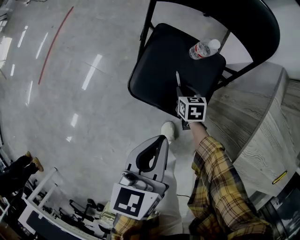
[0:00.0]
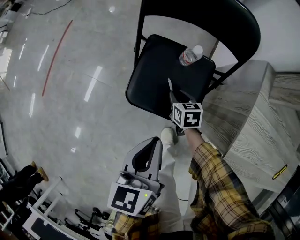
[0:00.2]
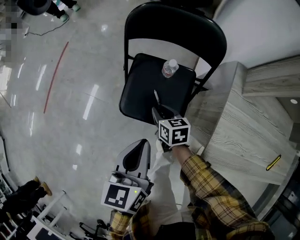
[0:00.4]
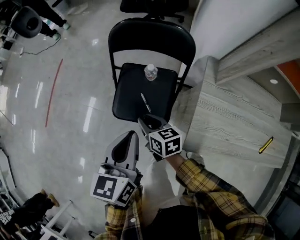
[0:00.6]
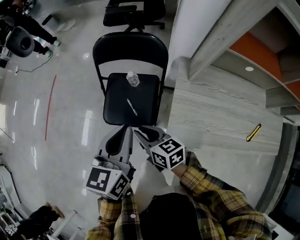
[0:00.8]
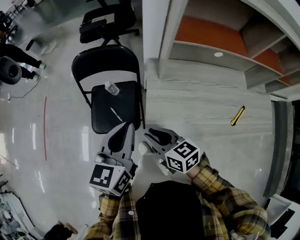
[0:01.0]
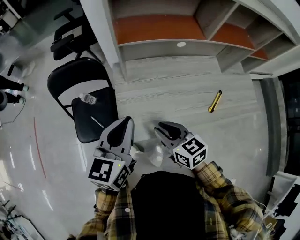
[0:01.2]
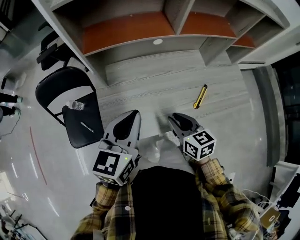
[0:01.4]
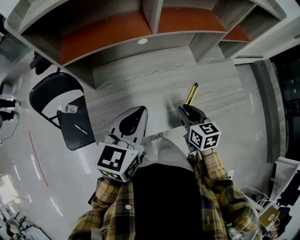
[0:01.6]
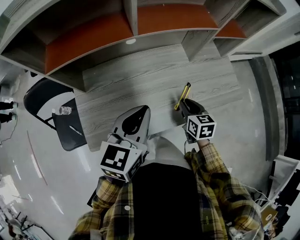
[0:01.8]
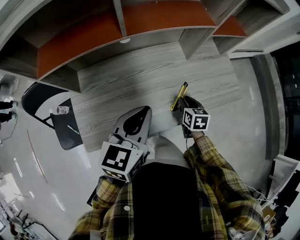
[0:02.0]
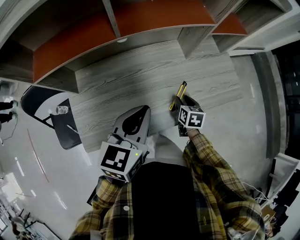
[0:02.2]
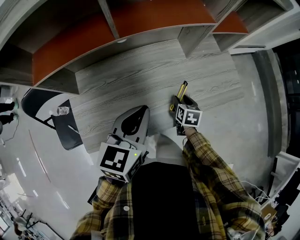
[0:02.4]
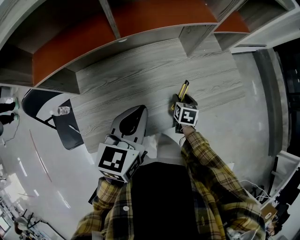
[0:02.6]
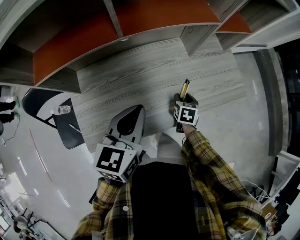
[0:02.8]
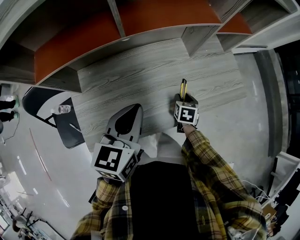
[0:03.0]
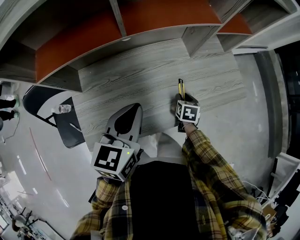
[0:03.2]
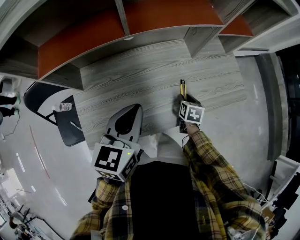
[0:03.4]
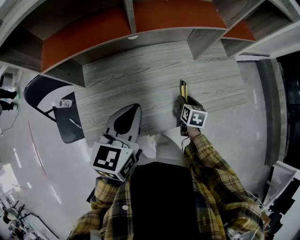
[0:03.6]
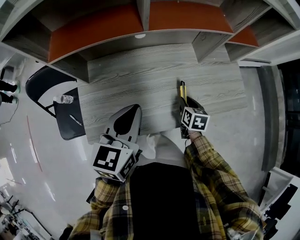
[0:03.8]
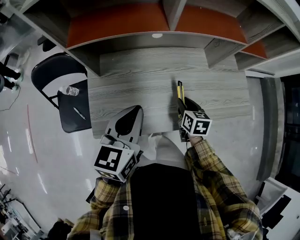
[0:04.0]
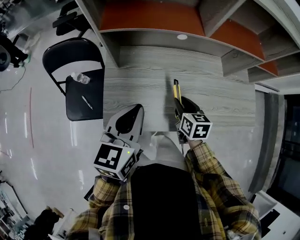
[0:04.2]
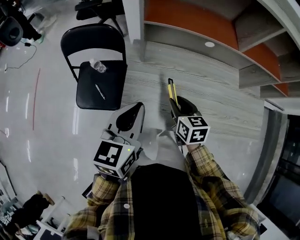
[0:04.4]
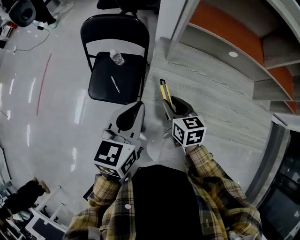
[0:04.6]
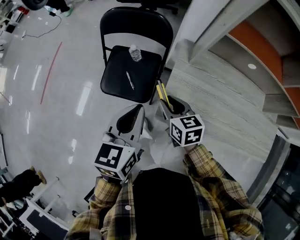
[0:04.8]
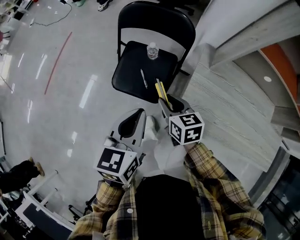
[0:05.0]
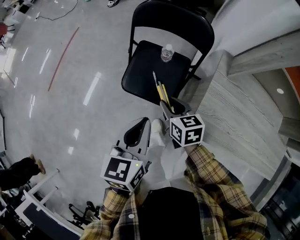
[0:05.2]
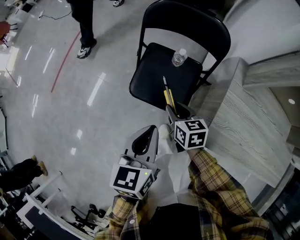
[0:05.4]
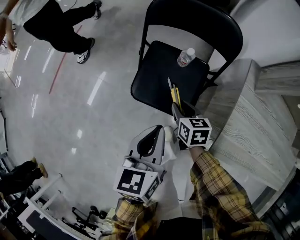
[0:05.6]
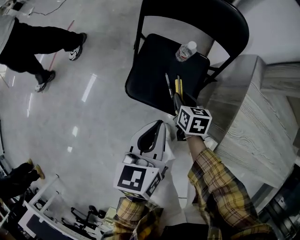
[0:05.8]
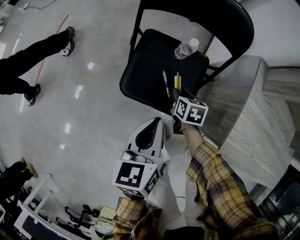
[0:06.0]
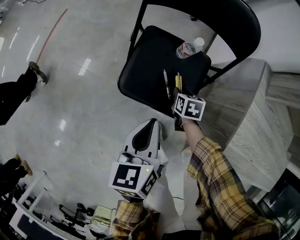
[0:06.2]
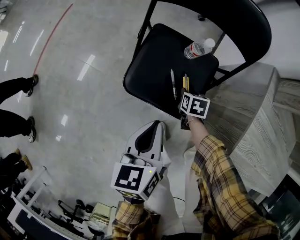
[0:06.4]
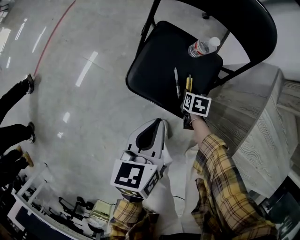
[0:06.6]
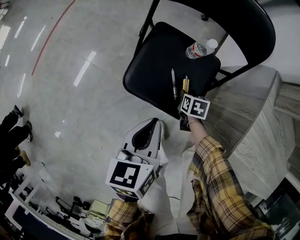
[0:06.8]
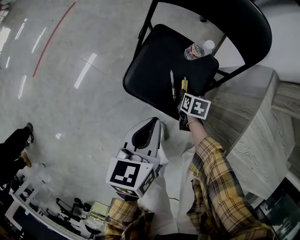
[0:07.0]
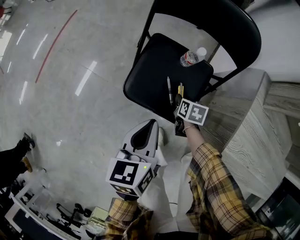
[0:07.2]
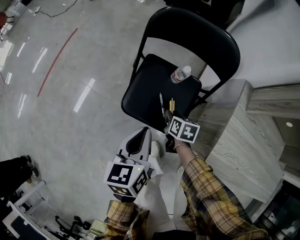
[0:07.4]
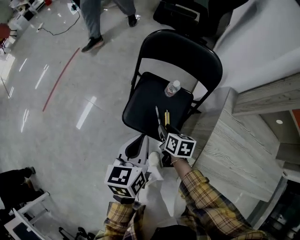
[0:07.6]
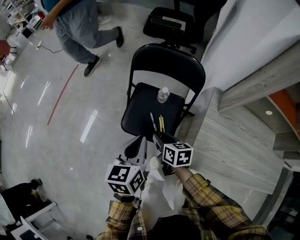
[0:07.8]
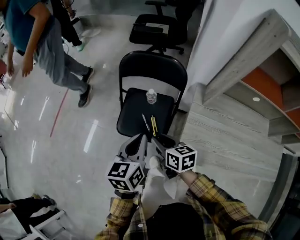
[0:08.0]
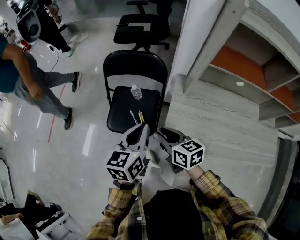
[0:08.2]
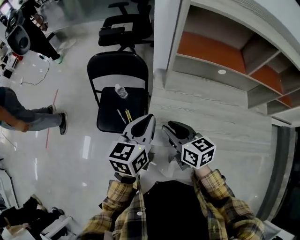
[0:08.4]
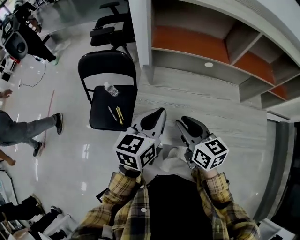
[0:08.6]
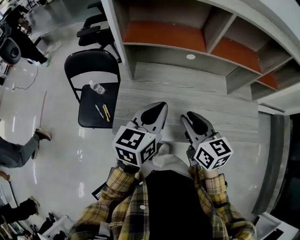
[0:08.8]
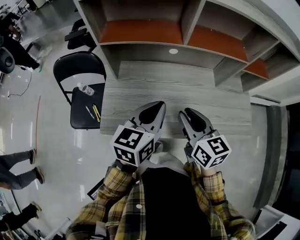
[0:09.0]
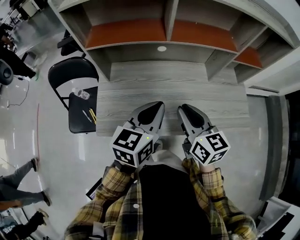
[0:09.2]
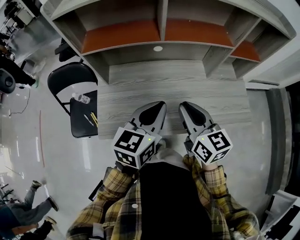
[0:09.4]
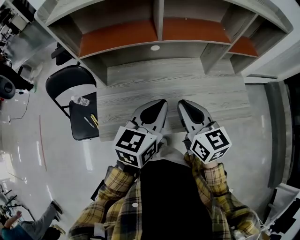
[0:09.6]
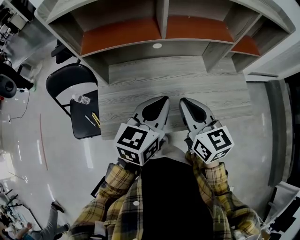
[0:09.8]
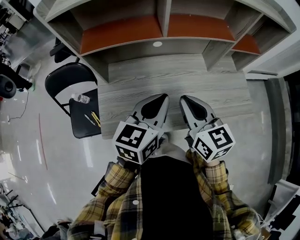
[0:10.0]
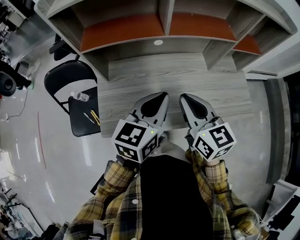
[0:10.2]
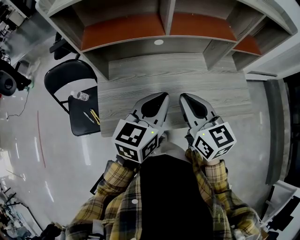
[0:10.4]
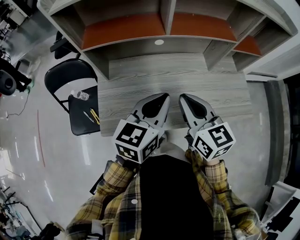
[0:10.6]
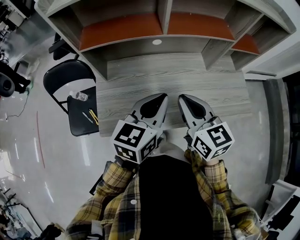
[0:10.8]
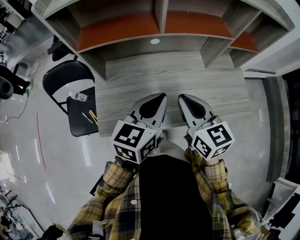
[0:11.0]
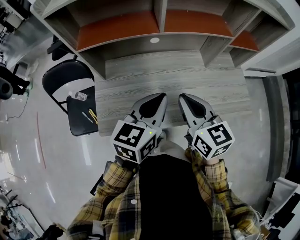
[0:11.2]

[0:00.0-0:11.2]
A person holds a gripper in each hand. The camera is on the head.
0:00.0 to 0:01.6: The two grippers travel together, approximately 60 cm. The left gripper turns by roughly 60 degrees. Meanwhile the right gripper rotates approximately 50 degrees.
0:01.6 to 0:03.2: The right gripper shifts about 20 cm downward, forward and to the right, and turns by approximately 30 degrees, while the left gripper heads forward, covering roughly 5 cm.
0:03.2 to 0:04.8: Both grippers are carried approximately 50 cm. The right gripper rotates roughly 60 degrees. Meanwhile the left gripper changes its angle by roughly 40 degrees.
0:04.8 to 0:06.4: The left gripper heads downward and to the left, covering roughly 35 cm, and rotates roughly 30 degrees. Meanwhile the right gripper is displaced downward by some 40 cm, and changes its angle by approximately 30 degrees.
0:06.4 to 0:08.0: The left gripper is displaced upward by about 25 cm. The right gripper travels upward by approximately 40 cm, and tilts its fingers about 30 degrees upward.
0:08.0 to 0:09.6: Both grippers are carried about 50 cm. The left gripper changes its angle by approximately 40 degrees, while the right gripper rotates roughly 40 degrees, and closes its fingers.
0:09.6 to 0:11.2: The grippers move only a little.

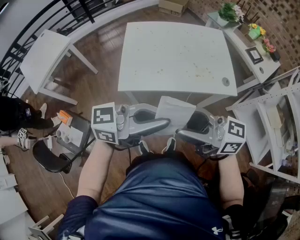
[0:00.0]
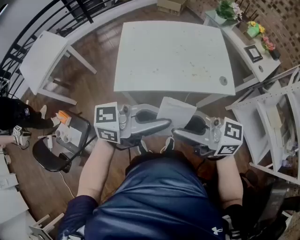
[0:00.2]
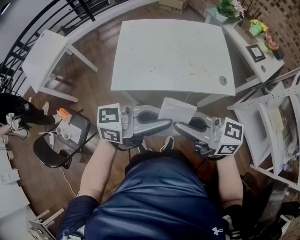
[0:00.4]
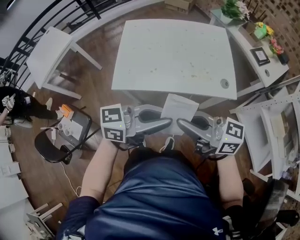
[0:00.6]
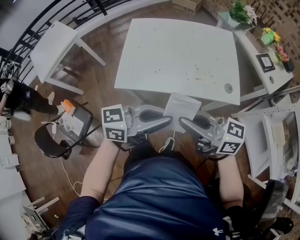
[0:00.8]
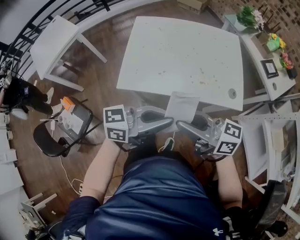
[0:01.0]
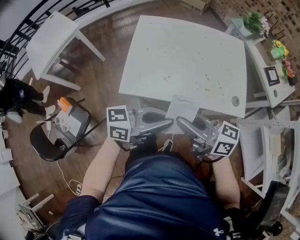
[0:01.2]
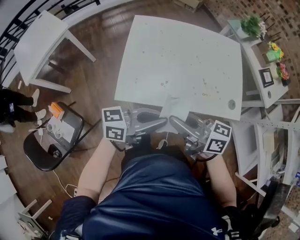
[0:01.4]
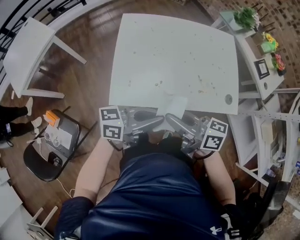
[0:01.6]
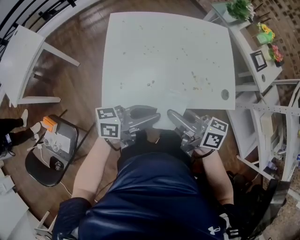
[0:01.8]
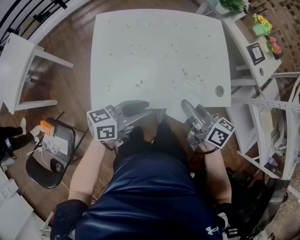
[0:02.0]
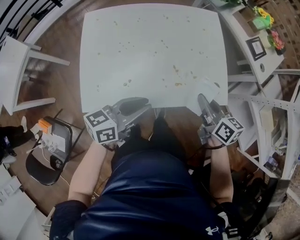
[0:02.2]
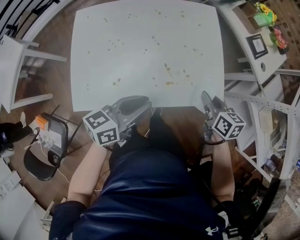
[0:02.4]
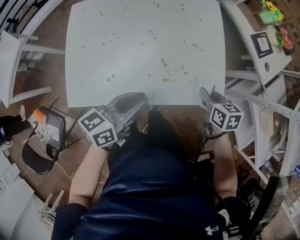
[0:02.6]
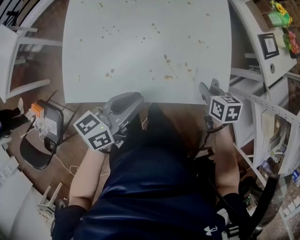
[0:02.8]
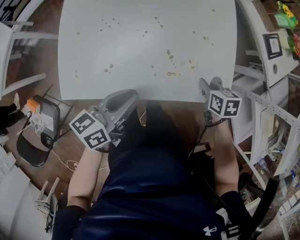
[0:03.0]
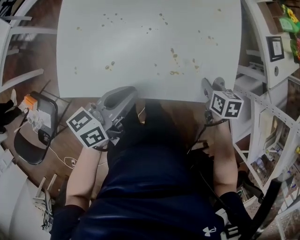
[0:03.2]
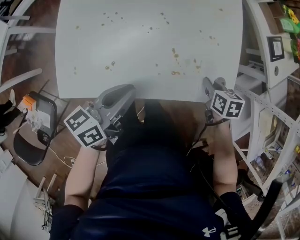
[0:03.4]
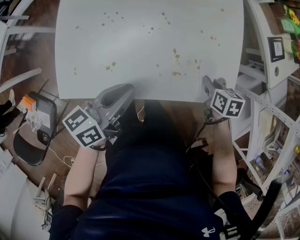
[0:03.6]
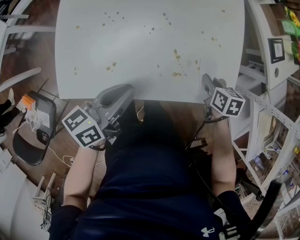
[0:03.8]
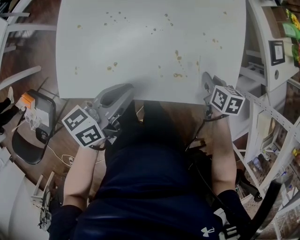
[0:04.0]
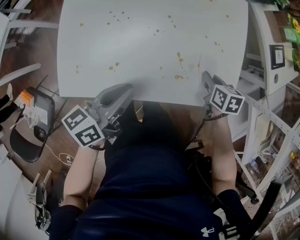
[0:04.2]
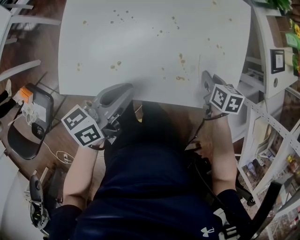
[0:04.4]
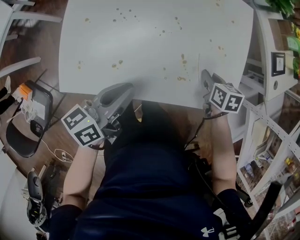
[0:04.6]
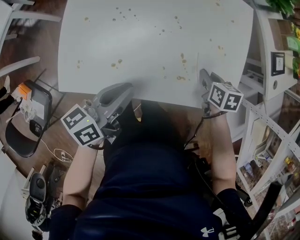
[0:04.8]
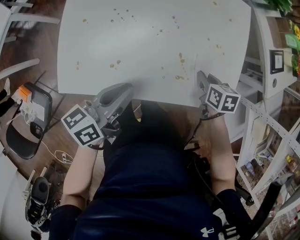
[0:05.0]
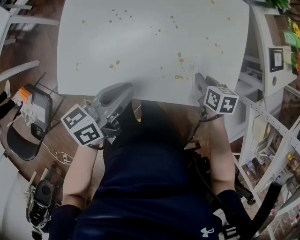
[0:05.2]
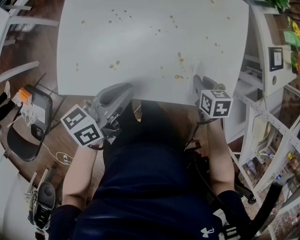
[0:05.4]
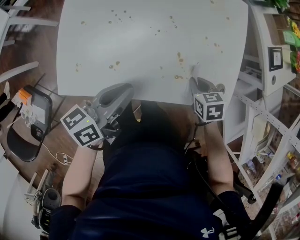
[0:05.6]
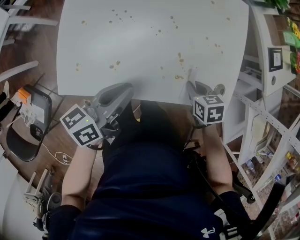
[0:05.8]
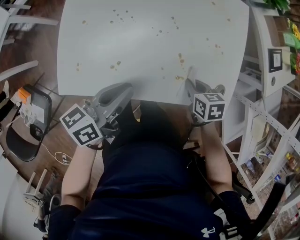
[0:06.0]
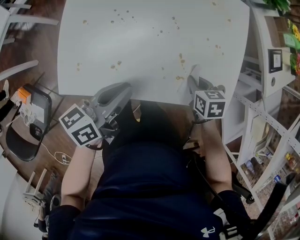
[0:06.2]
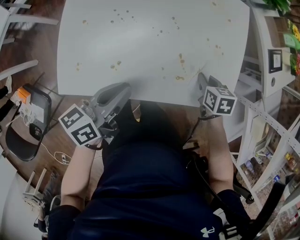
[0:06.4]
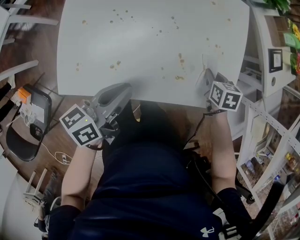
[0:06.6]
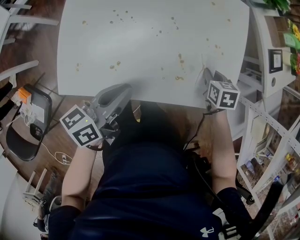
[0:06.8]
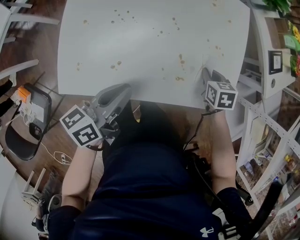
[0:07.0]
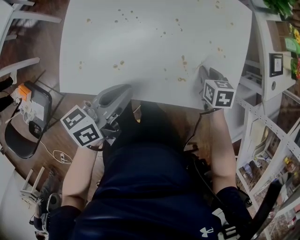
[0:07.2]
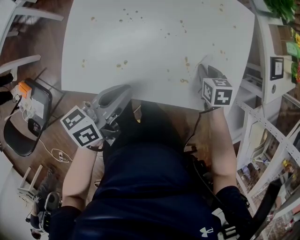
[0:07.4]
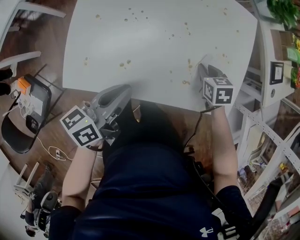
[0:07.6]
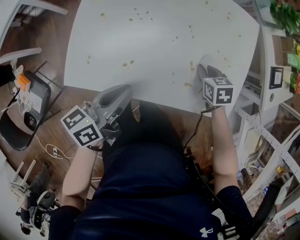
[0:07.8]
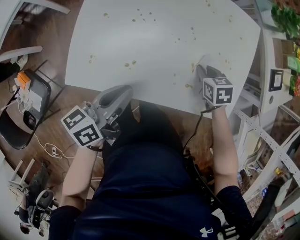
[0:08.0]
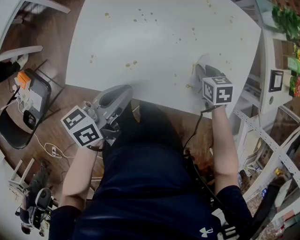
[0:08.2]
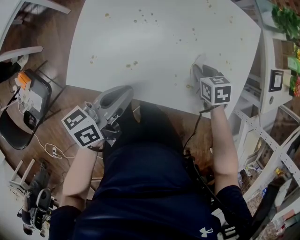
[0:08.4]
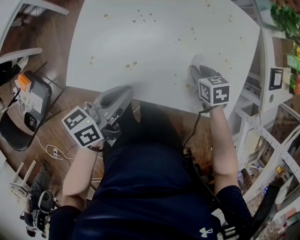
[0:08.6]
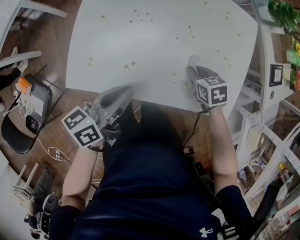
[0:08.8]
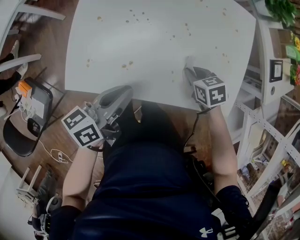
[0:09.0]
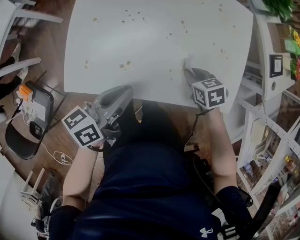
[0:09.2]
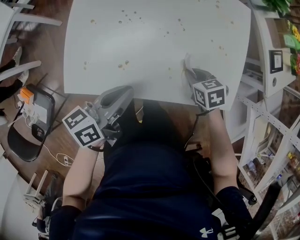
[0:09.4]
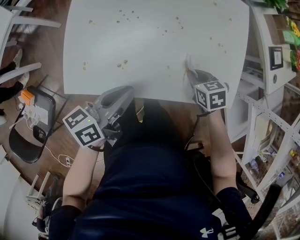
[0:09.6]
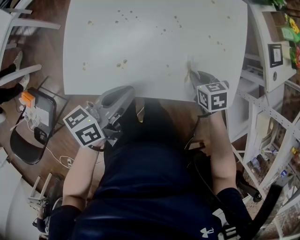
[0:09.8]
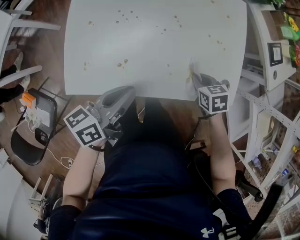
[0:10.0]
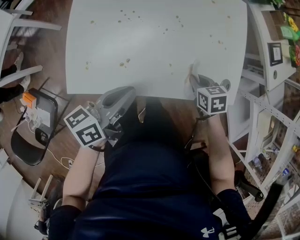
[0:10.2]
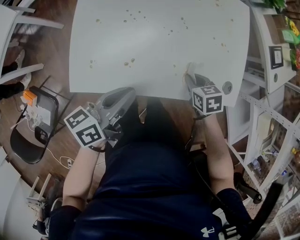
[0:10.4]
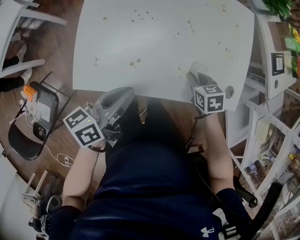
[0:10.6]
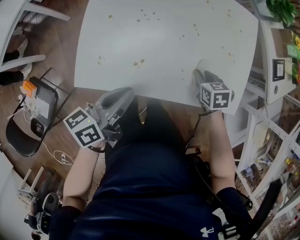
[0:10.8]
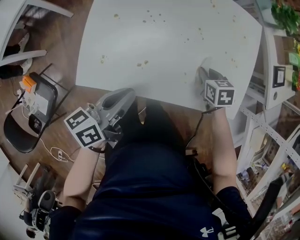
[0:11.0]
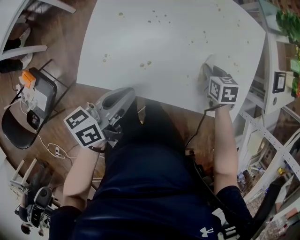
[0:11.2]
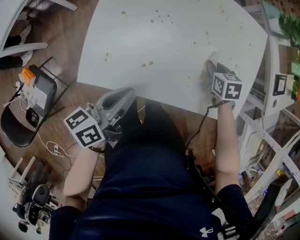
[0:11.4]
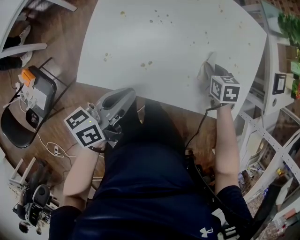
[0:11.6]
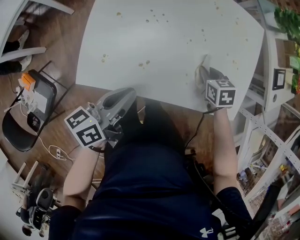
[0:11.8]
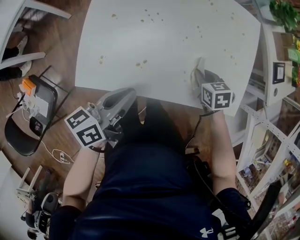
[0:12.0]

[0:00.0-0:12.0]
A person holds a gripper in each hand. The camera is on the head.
0:00.0 to 0:01.6: The right gripper ends up roughly 20 cm from where it was, turns by approximately 20 degrees, and closes its fingers. The left gripper changes place by some 20 cm, and turns by approximately 20 degrees.
0:01.6 to 0:03.0: The right gripper changes place by about 50 cm, and tilts its fingers approximately 50 degrees downward; the left gripper changes place by approximately 20 cm, and rotates roughly 30 degrees.
0:03.0 to 0:04.4: The left gripper goes roughly 5 cm to the left. Meanwhile the right gripper is displaced forward by about 5 cm.
0:04.4 to 0:06.0: The right gripper shifts roughly 10 cm to the left and backward.
0:06.0 to 0:07.6: The right gripper goes approximately 10 cm forward.
0:07.6 to 0:09.0: The right gripper heads to the left, covering approximately 5 cm.
0:09.0 to 0:10.4: The right gripper moves backward, approximately 5 cm.
